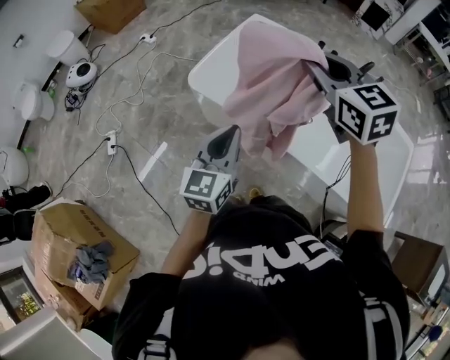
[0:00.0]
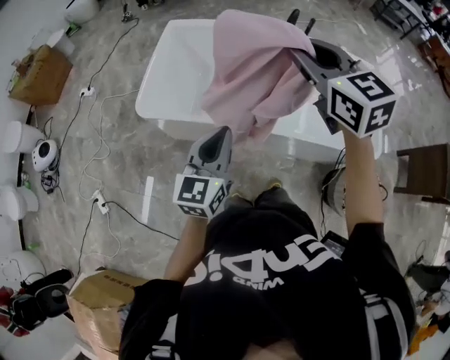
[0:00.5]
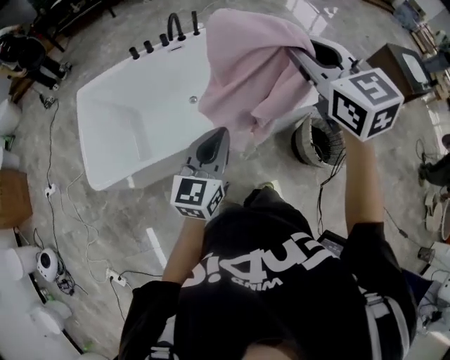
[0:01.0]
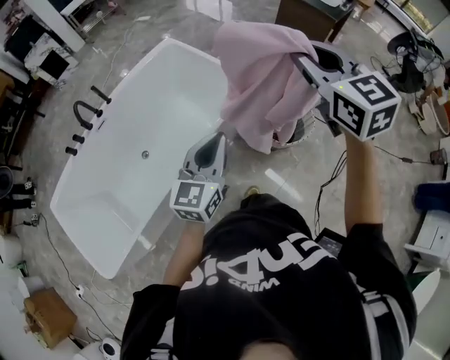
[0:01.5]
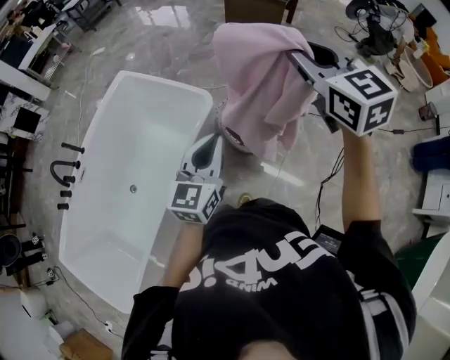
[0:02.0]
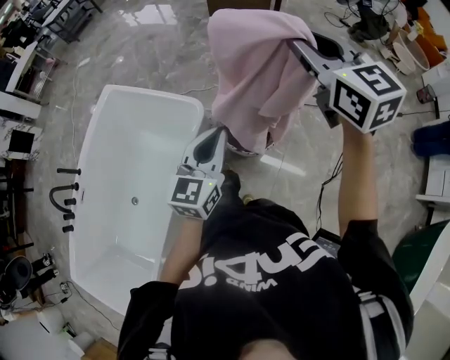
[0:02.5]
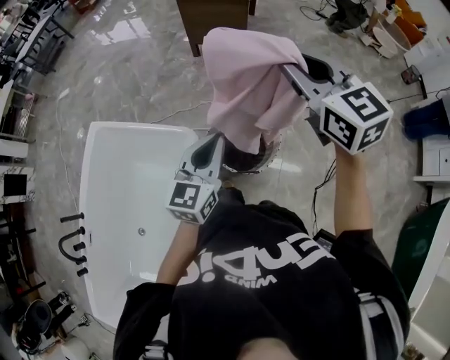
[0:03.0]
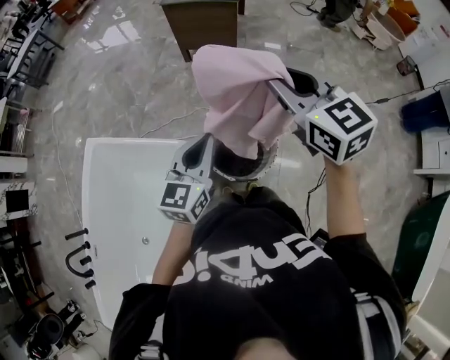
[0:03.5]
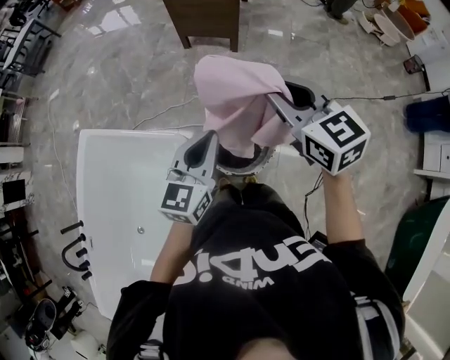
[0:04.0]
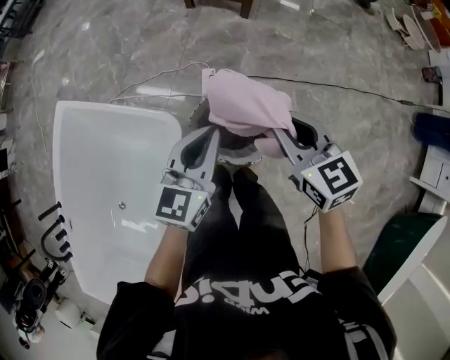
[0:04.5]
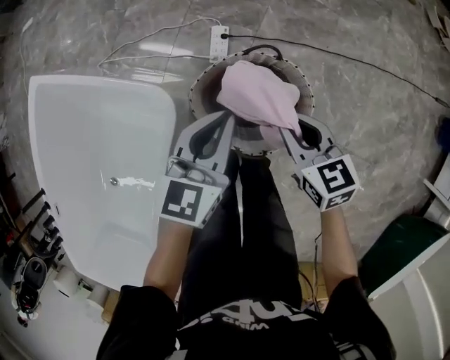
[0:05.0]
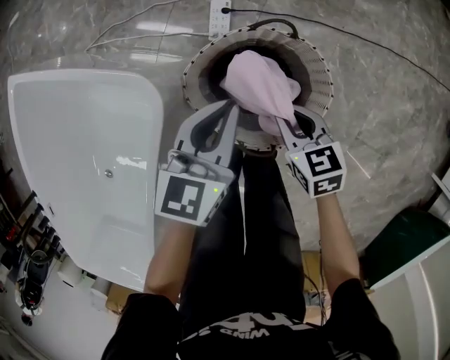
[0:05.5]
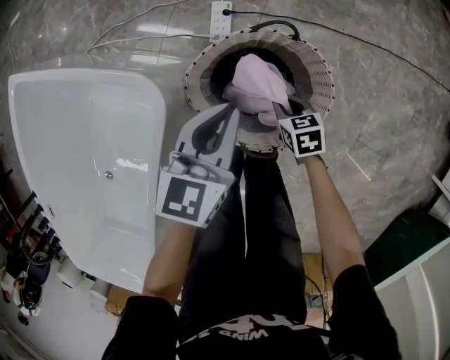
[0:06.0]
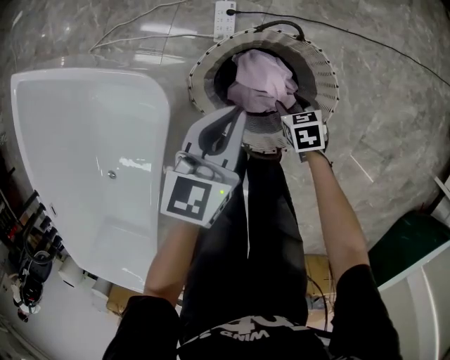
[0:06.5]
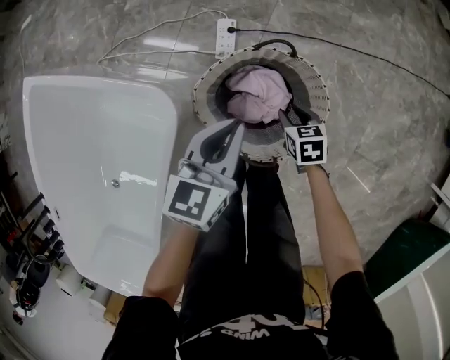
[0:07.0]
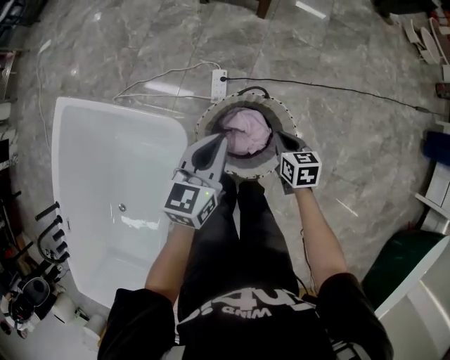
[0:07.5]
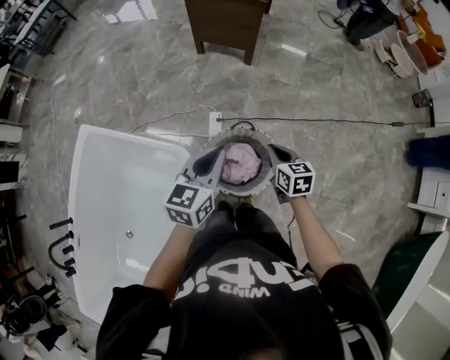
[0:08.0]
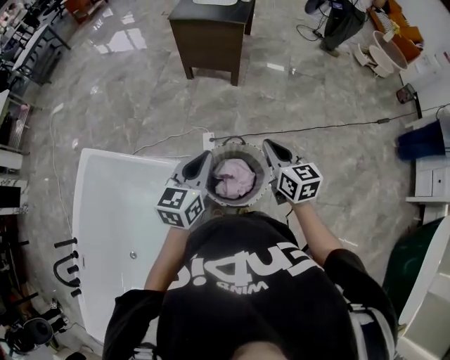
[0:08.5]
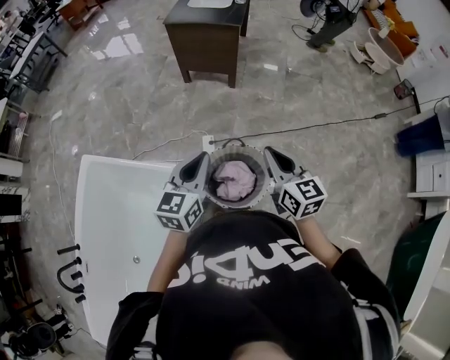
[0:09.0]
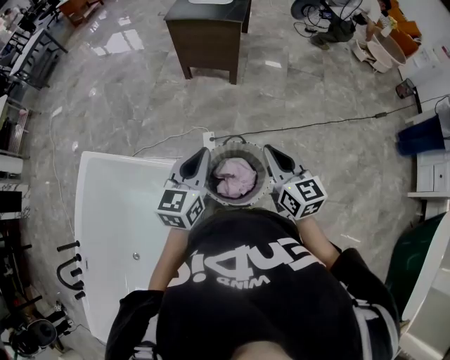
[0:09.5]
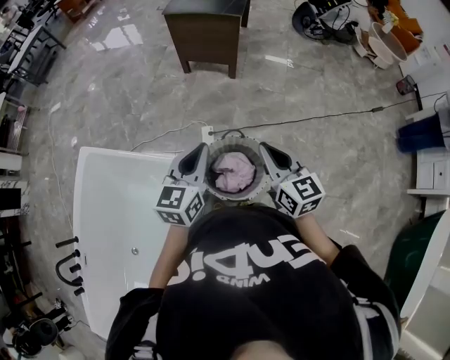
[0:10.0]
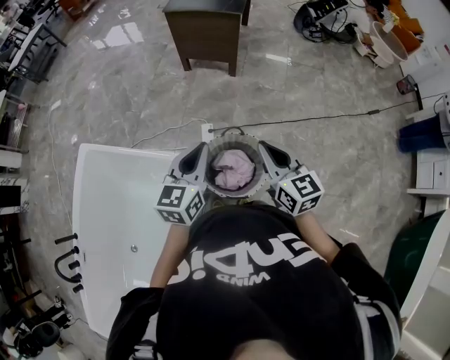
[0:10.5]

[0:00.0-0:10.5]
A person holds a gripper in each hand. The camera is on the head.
0:00.0 to 0:02.0: The two grippers travel together, some 80 cm. The left gripper swivels about 100 degrees. The right gripper swivels roughly 100 degrees.
0:02.0 to 0:04.0: The left gripper moves forward, roughly 30 cm. Meanwhile the right gripper travels forward and downward by roughly 25 cm.
0:04.0 to 0:06.5: The left gripper is displaced downward by roughly 40 cm, and rotates roughly 20 degrees. Meanwhile the right gripper goes some 70 cm downward, tips its fingers downward by some 50 degrees, and opens.
0:06.5 to 0:08.5: The right gripper is displaced upward by approximately 60 cm, tips its fingers upward by some 50 degrees, and closes. The left gripper shifts some 40 cm upward.
0:08.5 to 0:10.5: The right gripper moves roughly 5 cm.

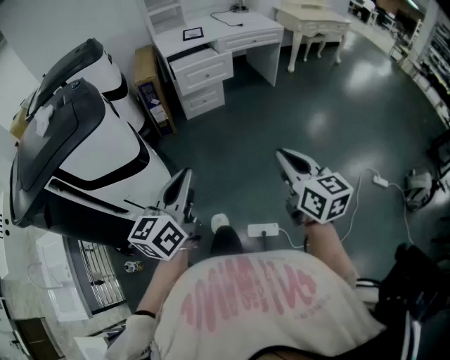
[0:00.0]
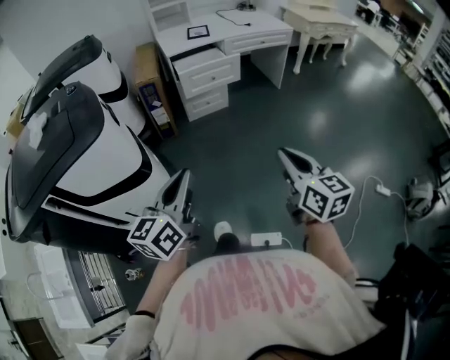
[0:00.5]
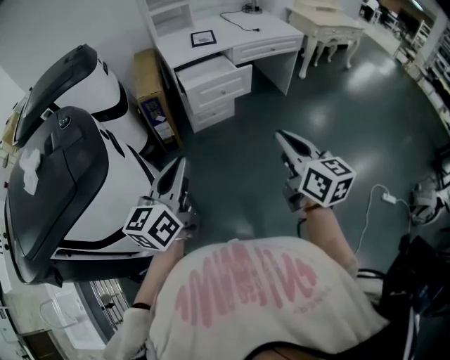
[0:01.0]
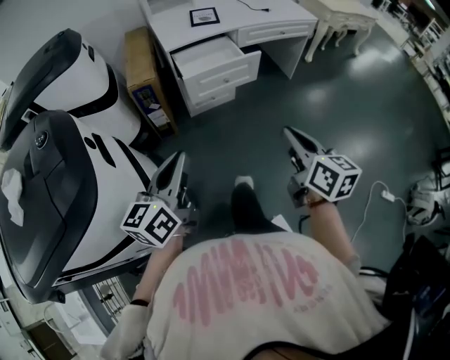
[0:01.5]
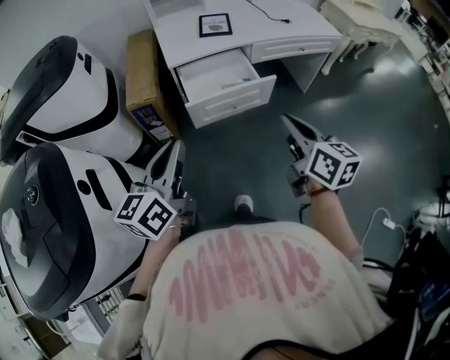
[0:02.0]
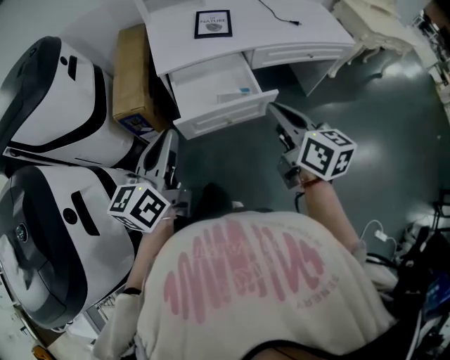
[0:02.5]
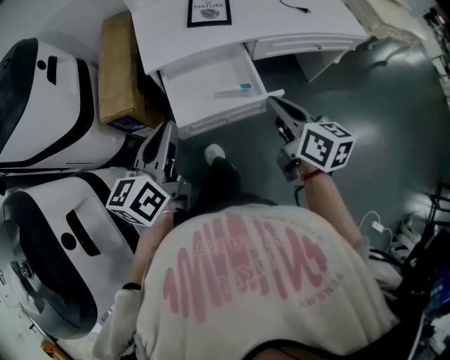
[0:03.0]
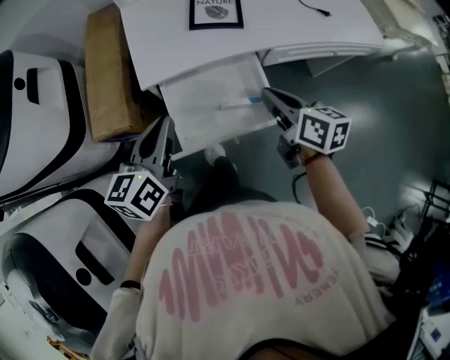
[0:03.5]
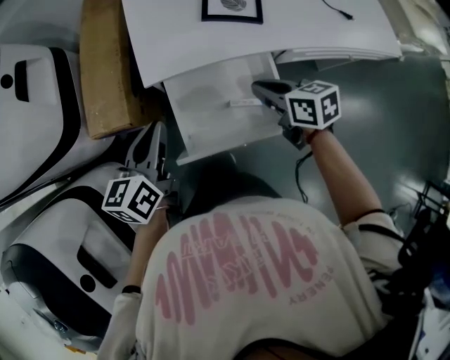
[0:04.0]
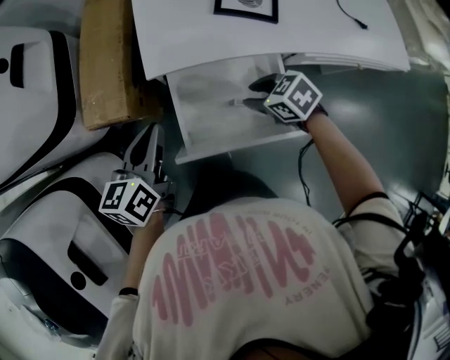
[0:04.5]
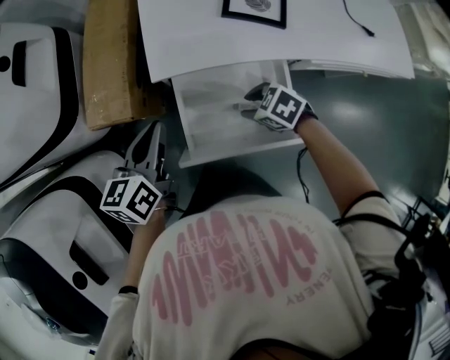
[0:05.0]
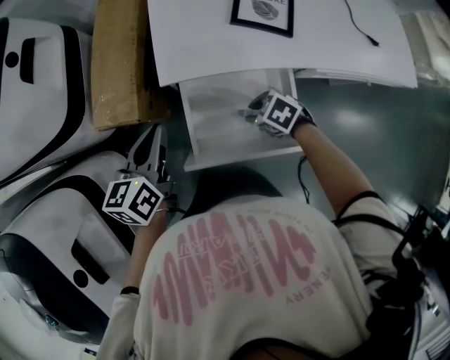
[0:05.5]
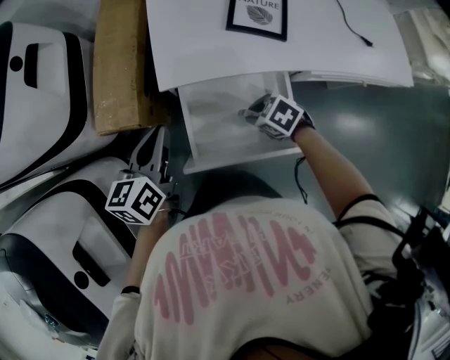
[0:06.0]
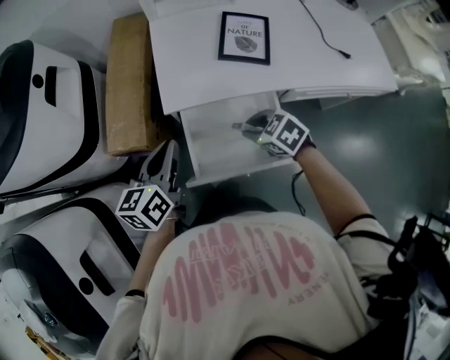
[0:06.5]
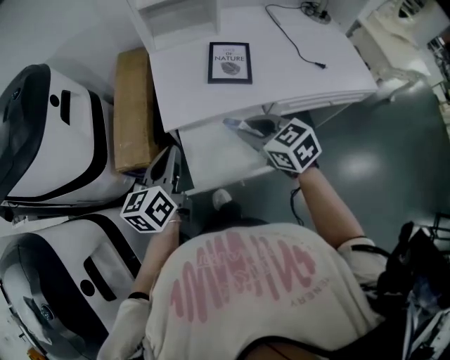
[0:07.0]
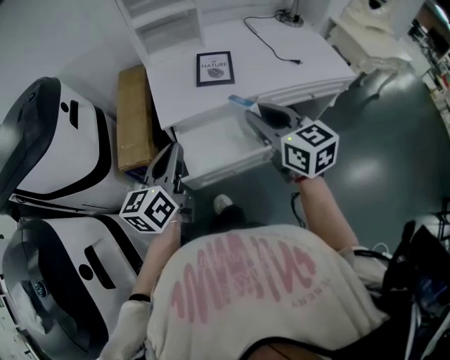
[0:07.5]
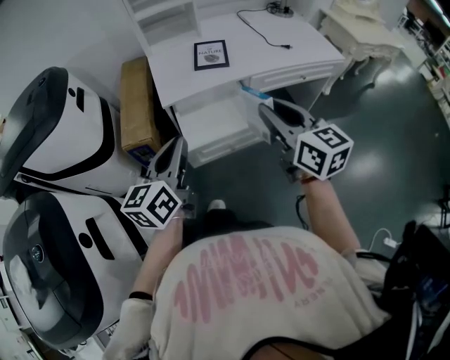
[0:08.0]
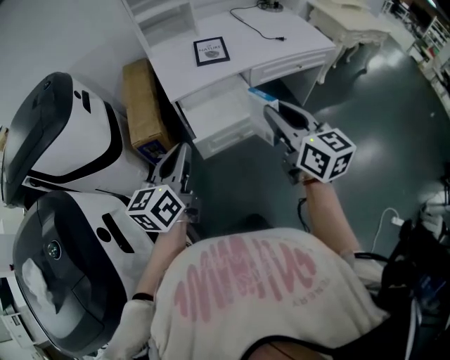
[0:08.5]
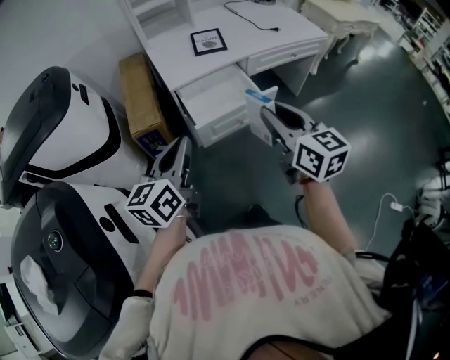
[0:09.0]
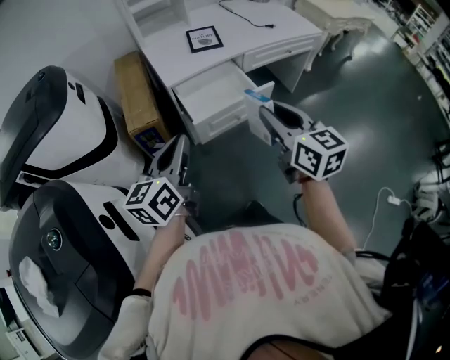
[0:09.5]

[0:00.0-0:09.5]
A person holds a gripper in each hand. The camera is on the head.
0:00.0 to 0:02.0: The pair of grippers is taken forward, roughly 60 cm.
0:02.0 to 0:04.0: Both grippers move forward and downward, about 40 cm. The right gripper swivels roughly 40 degrees. Meanwhile the left gripper rotates approximately 20 degrees.
0:04.0 to 0:05.5: The right gripper moves downward, approximately 15 cm, turns by approximately 50 degrees, and opens.
0:05.5 to 0:07.5: The left gripper is displaced upward by about 15 cm, and rotates approximately 20 degrees. The right gripper is displaced upward by approximately 40 cm, and tips its fingers upward by about 50 degrees.
0:07.5 to 0:09.5: The two grippers go roughly 20 cm backward.

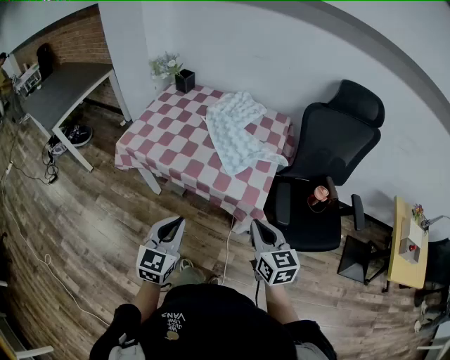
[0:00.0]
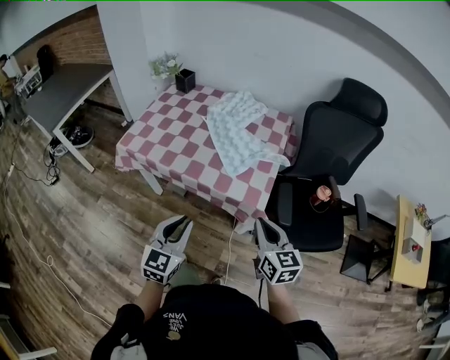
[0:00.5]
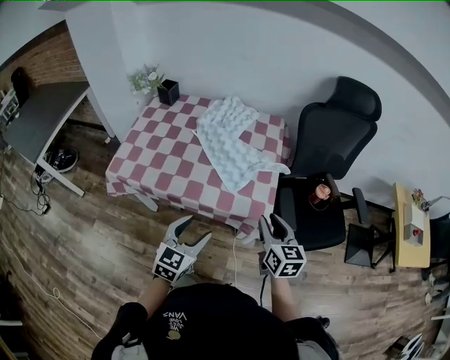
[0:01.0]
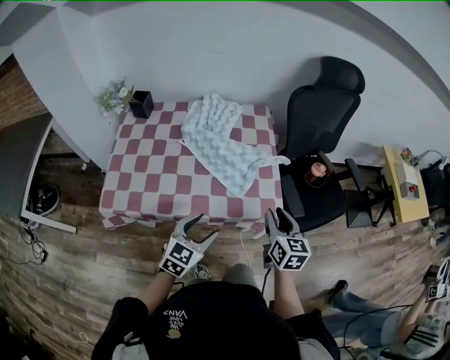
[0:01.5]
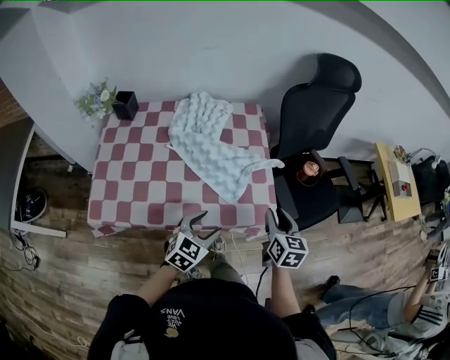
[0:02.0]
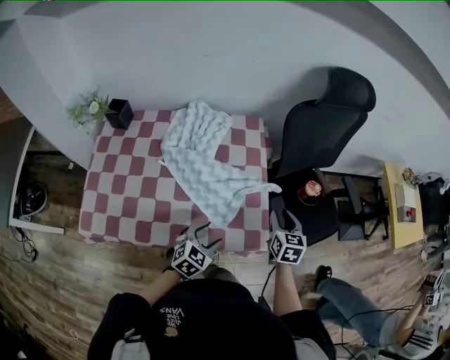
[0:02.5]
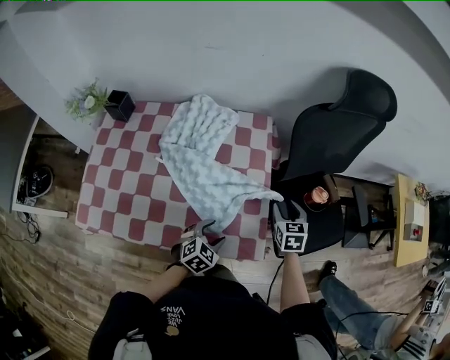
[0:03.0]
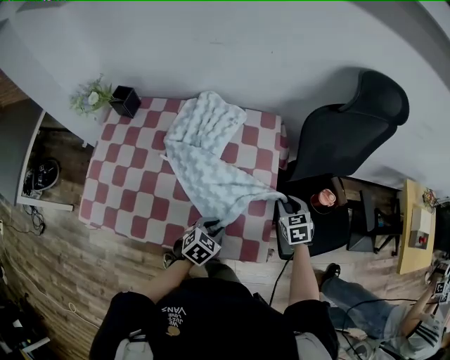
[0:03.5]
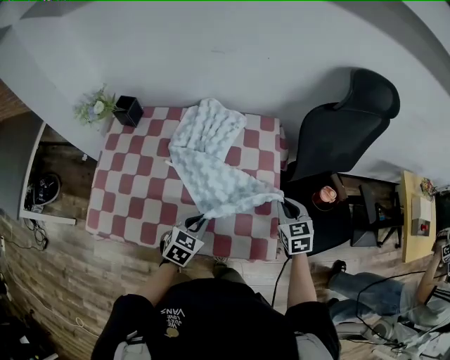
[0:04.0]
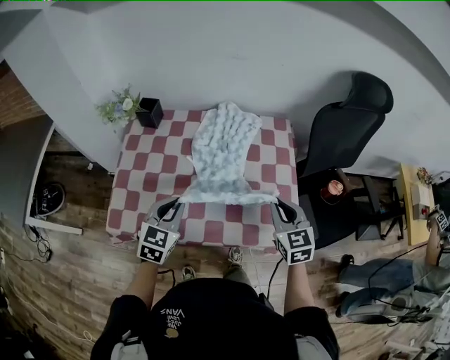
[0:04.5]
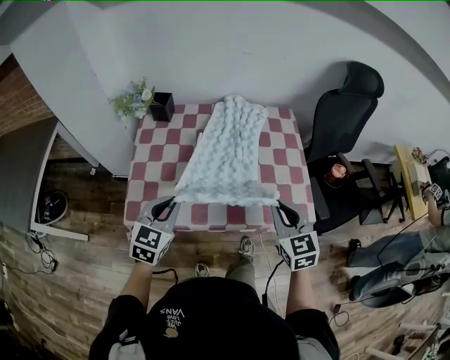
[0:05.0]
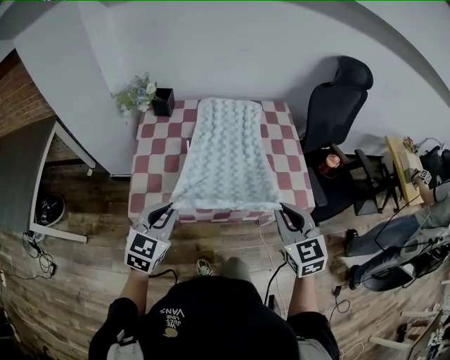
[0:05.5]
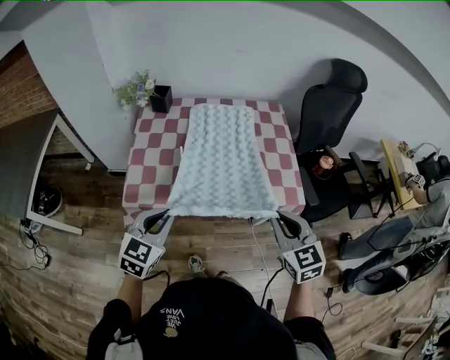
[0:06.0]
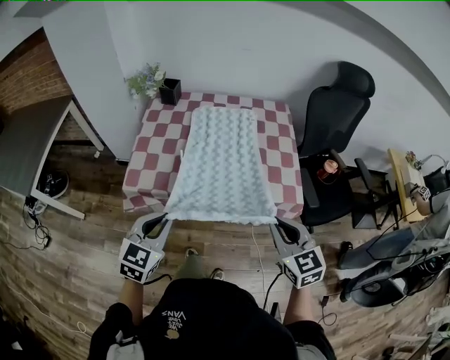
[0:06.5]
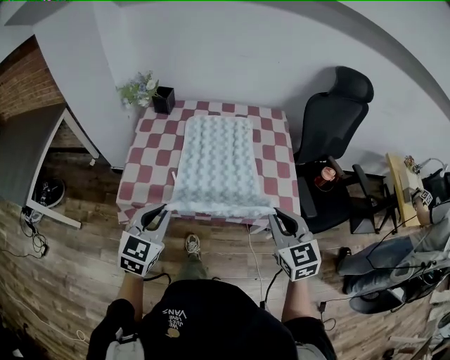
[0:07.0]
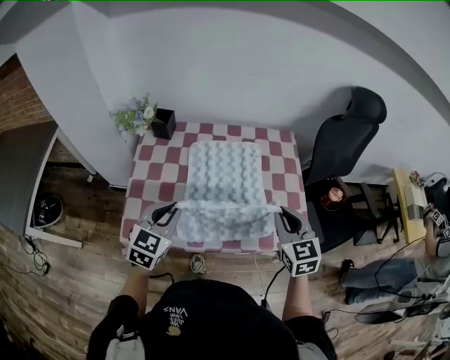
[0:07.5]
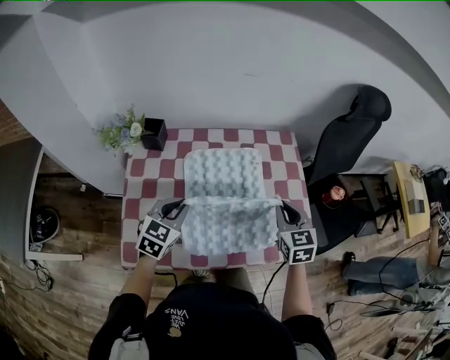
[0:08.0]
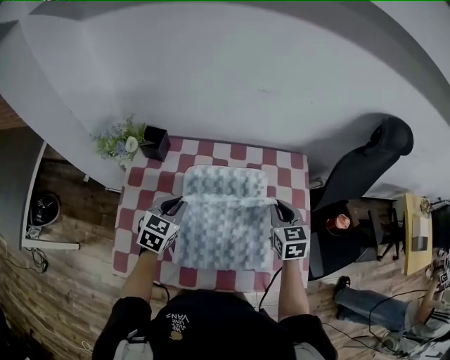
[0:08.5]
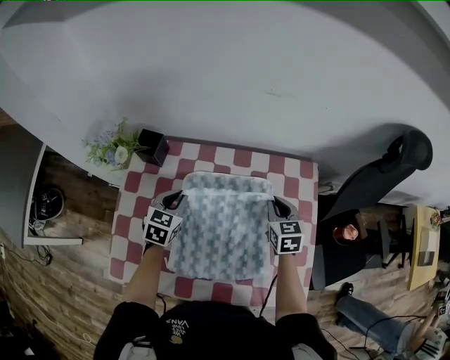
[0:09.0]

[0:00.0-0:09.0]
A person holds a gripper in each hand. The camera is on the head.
0:00.0 to 0:02.0: The right gripper moves about 15 cm, changes its angle by some 40 degrees, and opens its fingers; the left gripper changes place by about 25 cm, changes its angle by some 50 degrees, and opens.
0:02.0 to 0:04.5: The left gripper goes about 20 cm to the left, rotates some 20 degrees, and closes up. Meanwhile the right gripper goes some 10 cm to the left, travels forward and back again, about 25 cm each way, and changes its angle by some 30 degrees.
0:04.5 to 0:07.0: The two grippers go about 20 cm backward.
0:07.0 to 0:09.0: The two grippers travel together, forward, about 40 cm.
